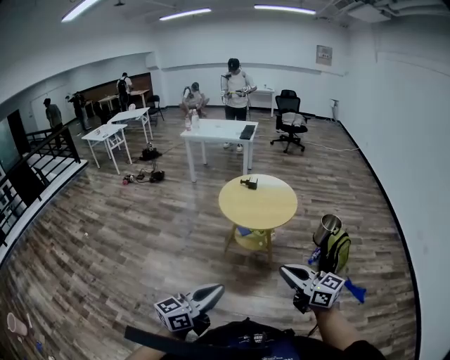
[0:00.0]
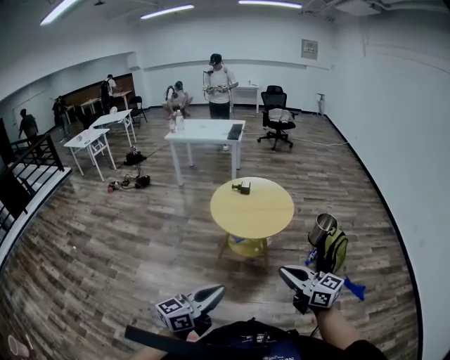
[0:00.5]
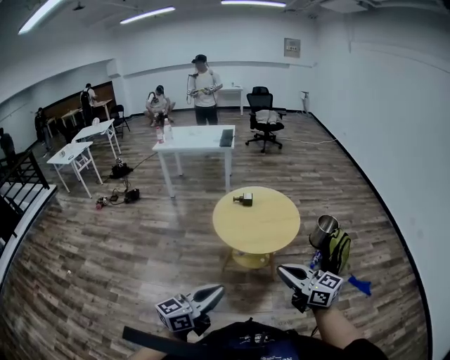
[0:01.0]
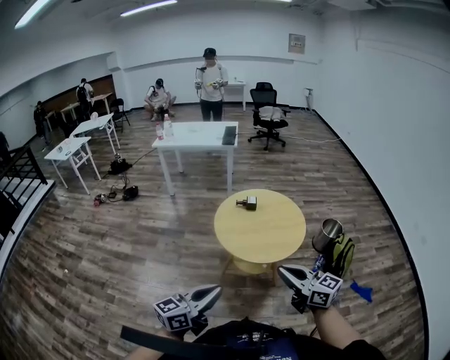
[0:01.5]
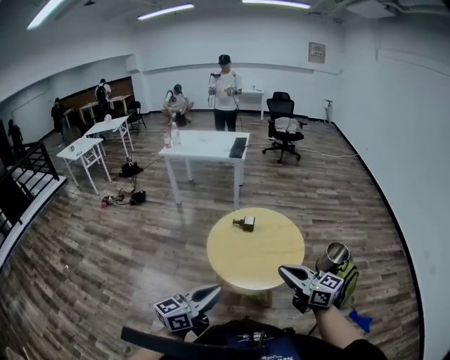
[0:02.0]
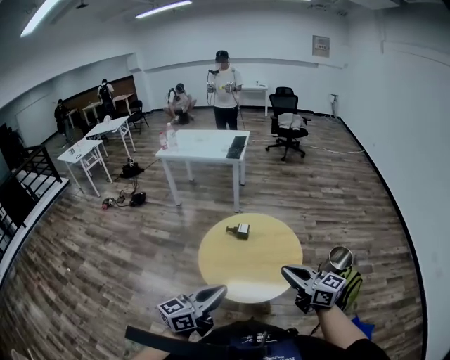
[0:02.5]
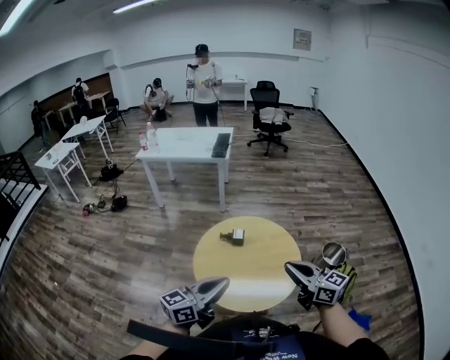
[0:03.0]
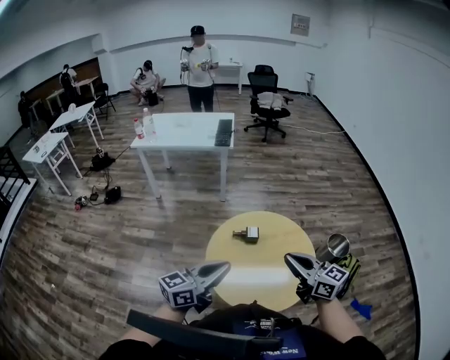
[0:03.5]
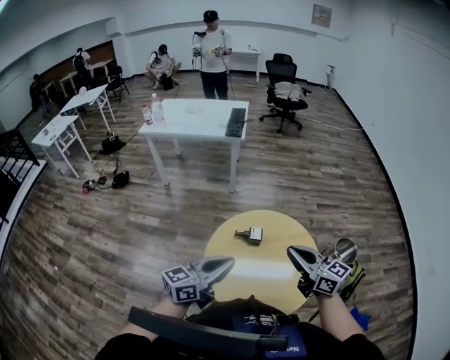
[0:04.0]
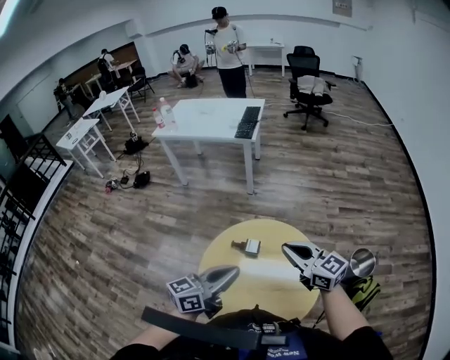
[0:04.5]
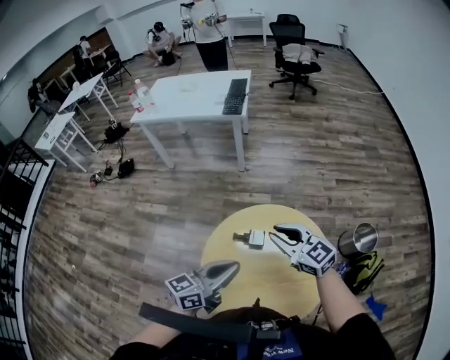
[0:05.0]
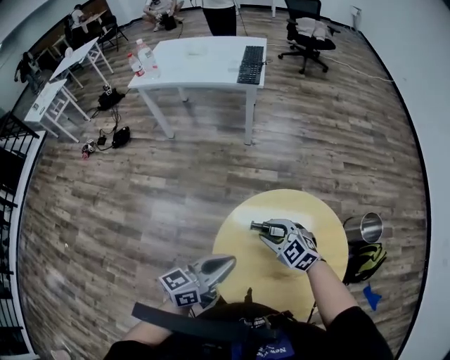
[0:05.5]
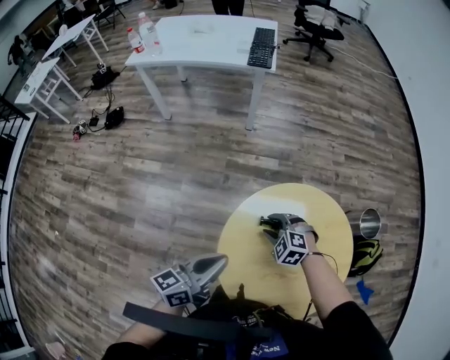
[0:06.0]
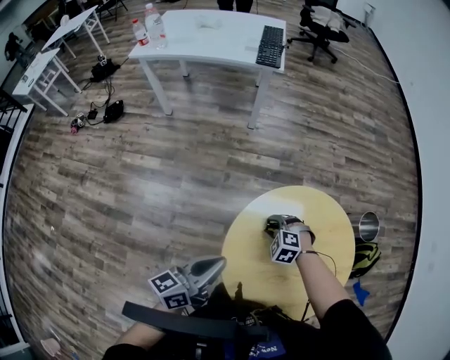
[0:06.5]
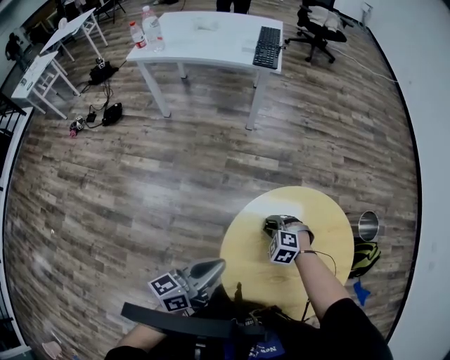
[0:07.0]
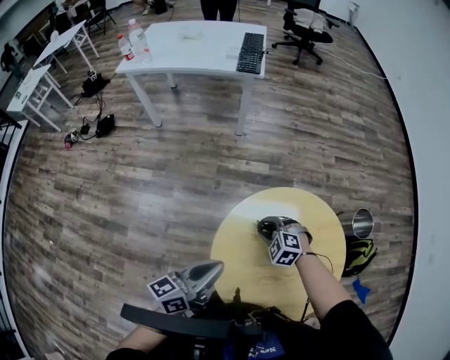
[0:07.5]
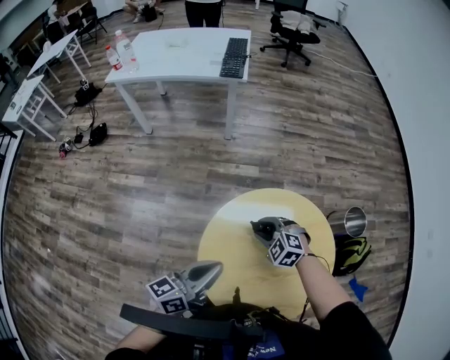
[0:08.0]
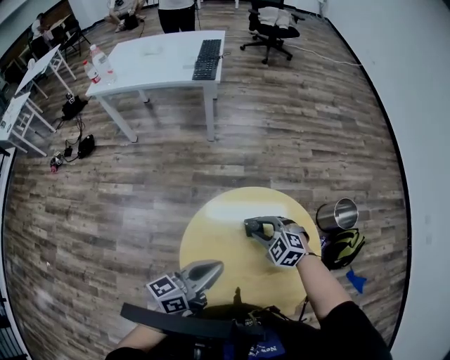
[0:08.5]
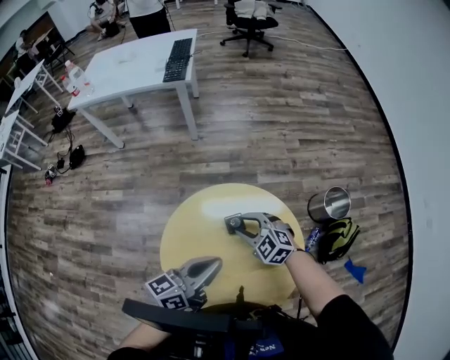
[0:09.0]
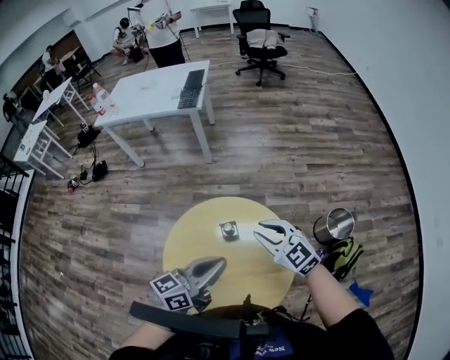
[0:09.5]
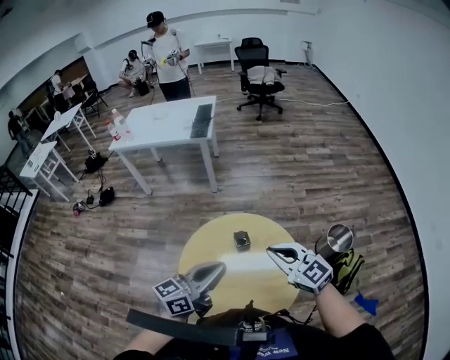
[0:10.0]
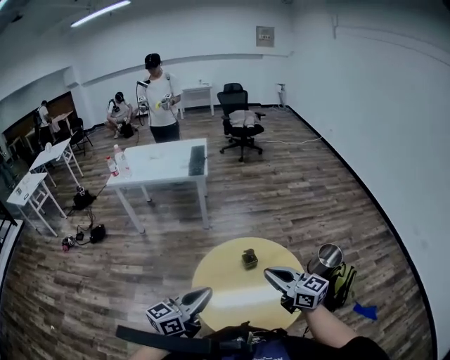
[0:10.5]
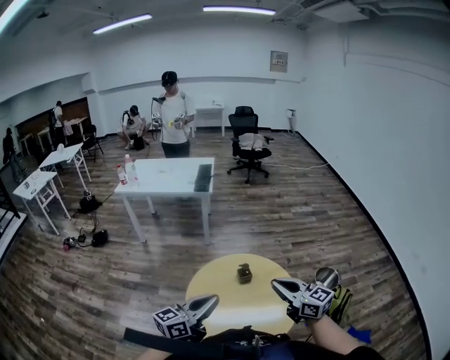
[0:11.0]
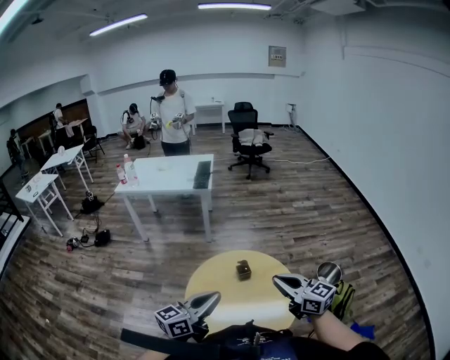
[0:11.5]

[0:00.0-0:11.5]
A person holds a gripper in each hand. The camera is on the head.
0:00.0 to 0:02.0: The pair of grippers is taken forward, some 50 cm.
0:02.0 to 0:04.0: Both grippers are carried forward, about 40 cm.
0:04.0 to 0:06.0: The left gripper shifts some 35 cm forward, downward and to the left. Meanwhile the right gripper moves downward, forward and to the left, some 50 cm, points its fingers approximately 60 degrees further downward, and opens its fingers.
0:07.5 to 0:09.5: The right gripper shifts roughly 40 cm to the right and upward, and points its fingers about 40 degrees further upward, while the left gripper travels to the right by roughly 40 cm.
0:09.5 to 0:11.5: The right gripper moves backward and upward, about 35 cm, rotates roughly 30 degrees, and closes, while the left gripper moves backward, to the left and upward, approximately 30 cm.

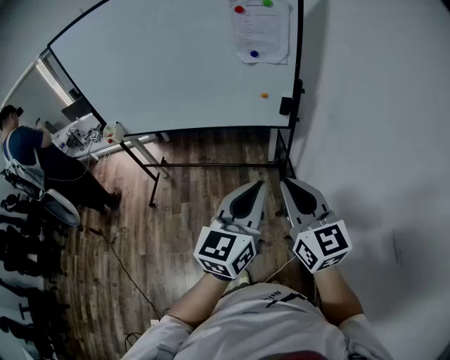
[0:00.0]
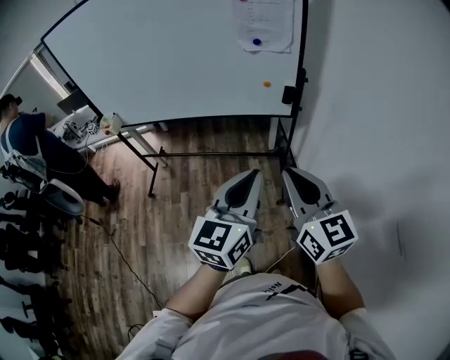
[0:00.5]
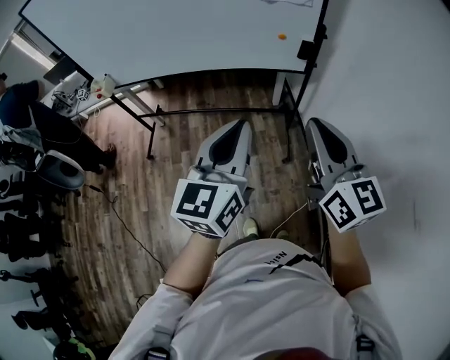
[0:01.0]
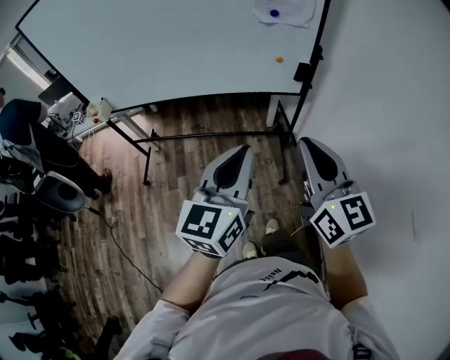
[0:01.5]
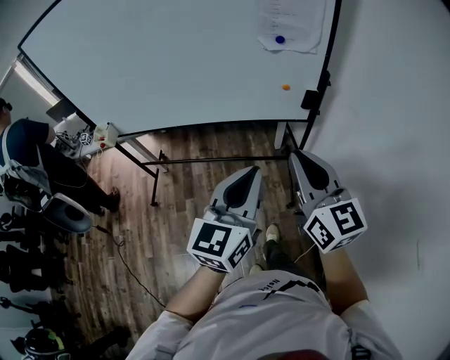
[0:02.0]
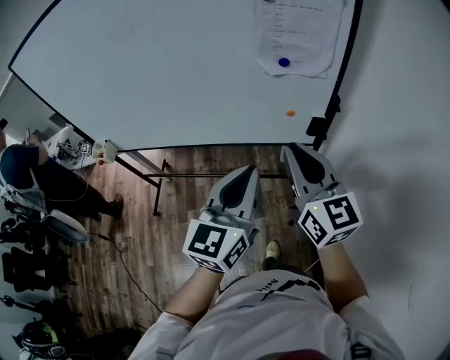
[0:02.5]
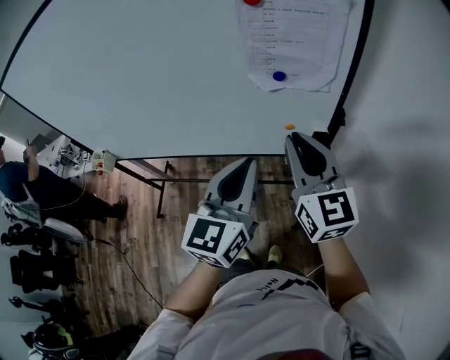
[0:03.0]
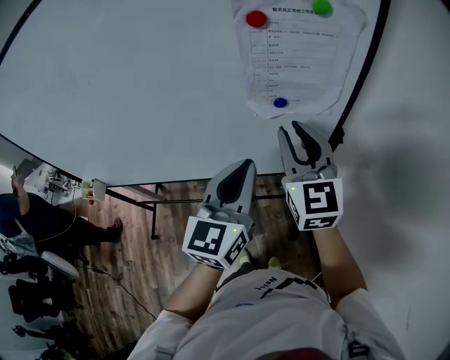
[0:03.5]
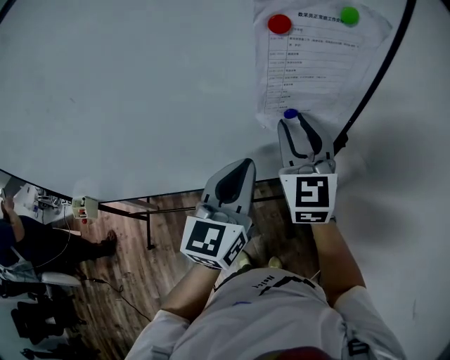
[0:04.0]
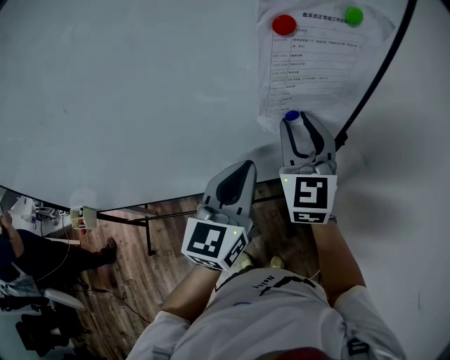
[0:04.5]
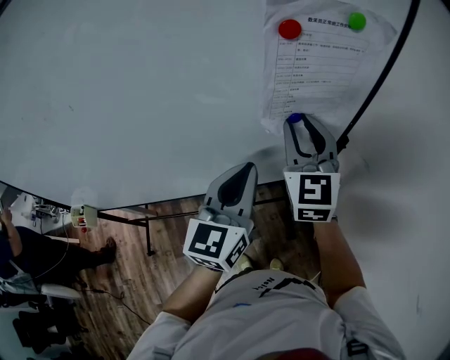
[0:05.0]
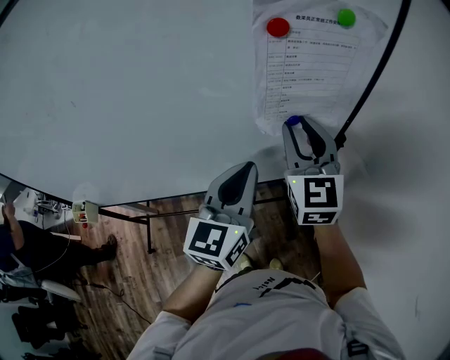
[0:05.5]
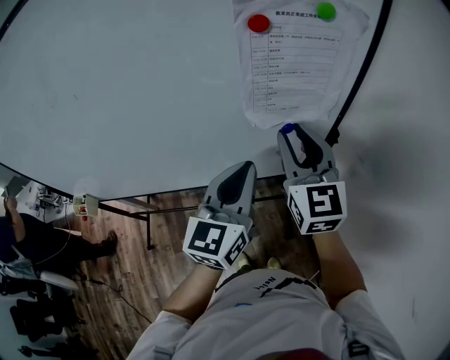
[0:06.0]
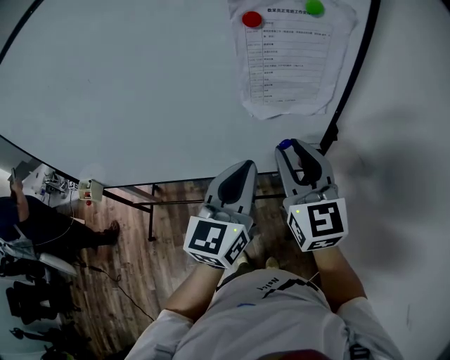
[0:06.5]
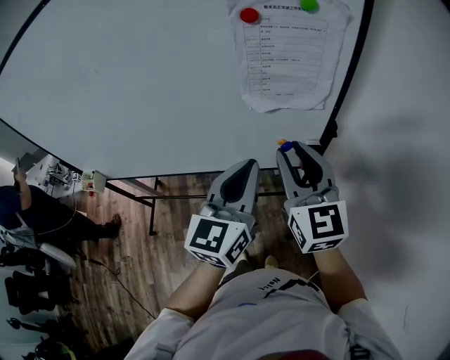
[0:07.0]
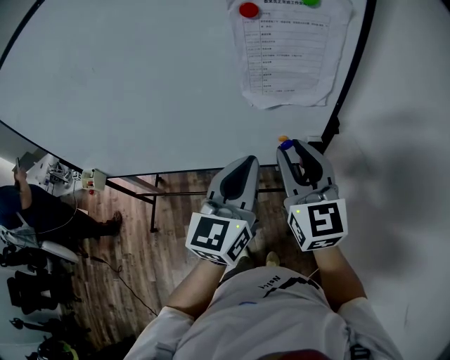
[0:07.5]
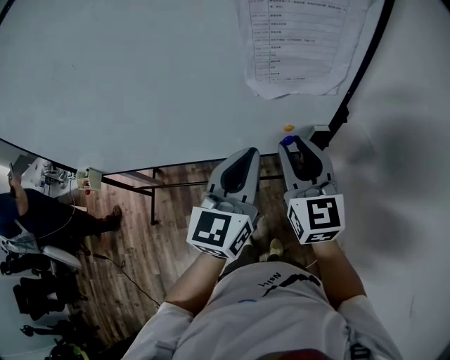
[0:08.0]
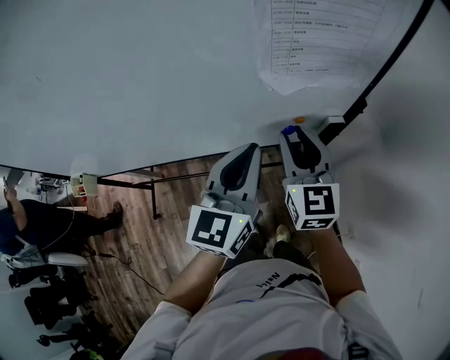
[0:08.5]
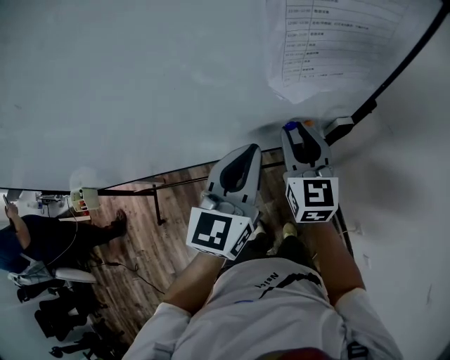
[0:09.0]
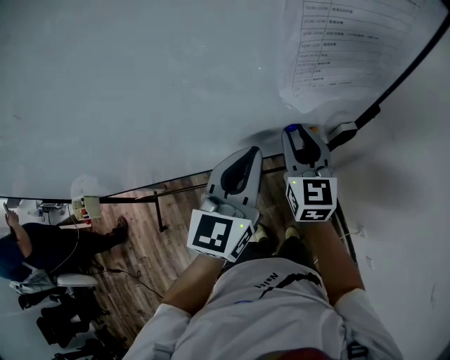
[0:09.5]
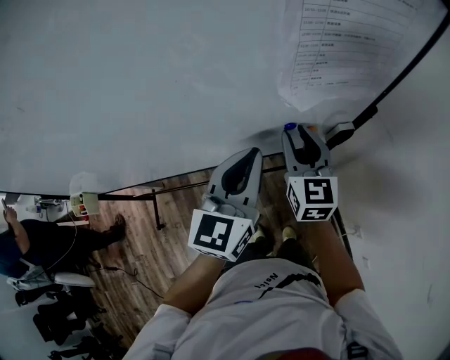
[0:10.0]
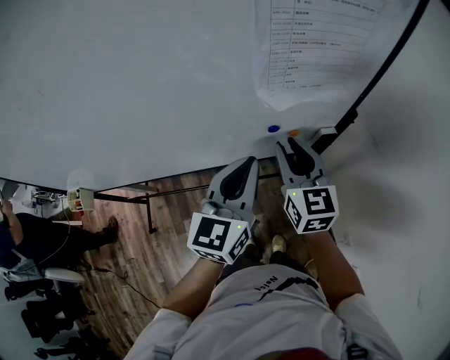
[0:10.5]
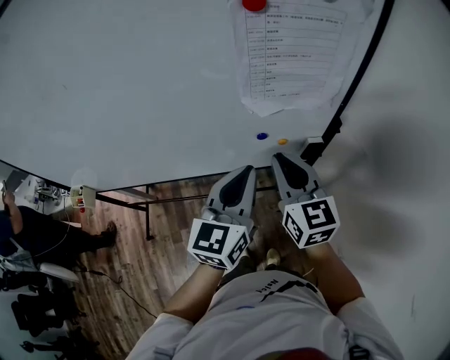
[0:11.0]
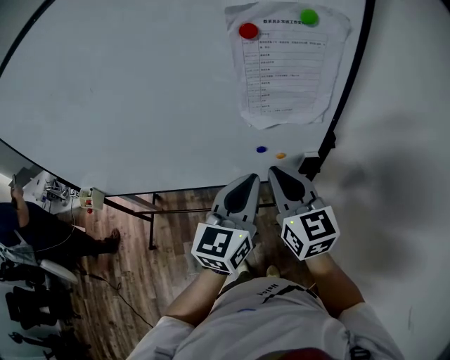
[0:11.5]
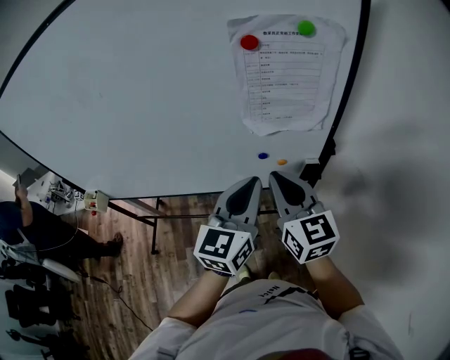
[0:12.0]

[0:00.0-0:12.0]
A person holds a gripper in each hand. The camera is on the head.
0:00.0 to 0:02.0: Both grippers travel together forward and to the left, roughly 15 cm.
0:02.0 to 0:04.0: Both grippers travel together forward, approximately 40 cm. The right gripper rotates approximately 30 degrees, and opens.
0:04.0 to 0:06.0: The grippers move only a little.
0:06.0 to 0:08.0: The right gripper is displaced downward and backward by approximately 10 cm.
0:08.0 to 0:10.0: The right gripper shifts about 15 cm downward and forward; the left gripper is displaced forward, downward and to the left by some 10 cm.
0:10.0 to 0:12.0: The left gripper heads backward, upward and to the right, covering roughly 15 cm. Meanwhile the right gripper travels upward and backward by about 20 cm, swivels approximately 20 degrees, and closes.

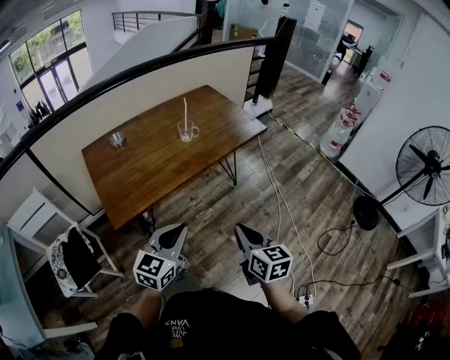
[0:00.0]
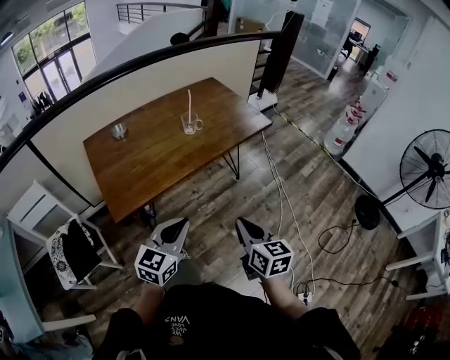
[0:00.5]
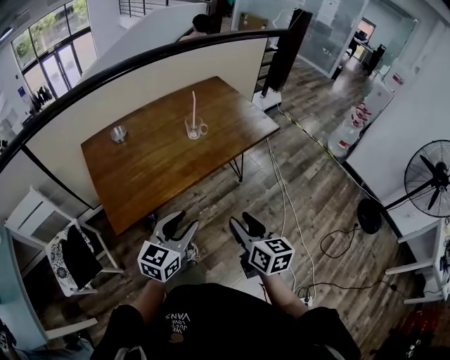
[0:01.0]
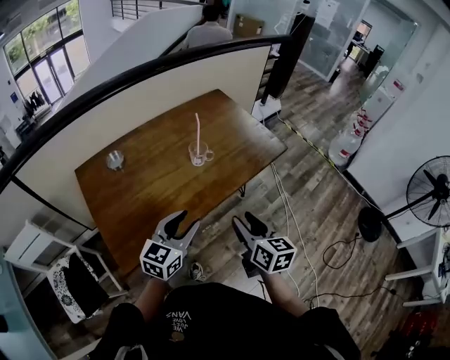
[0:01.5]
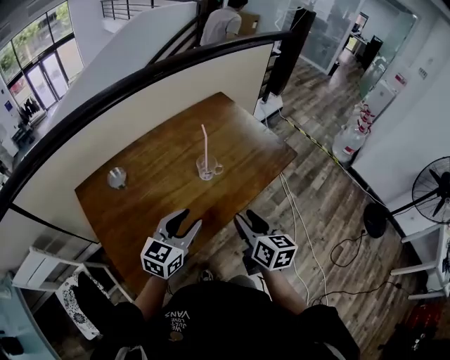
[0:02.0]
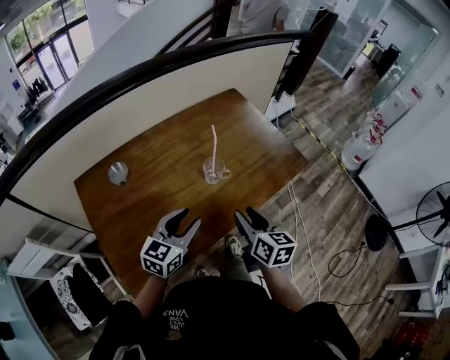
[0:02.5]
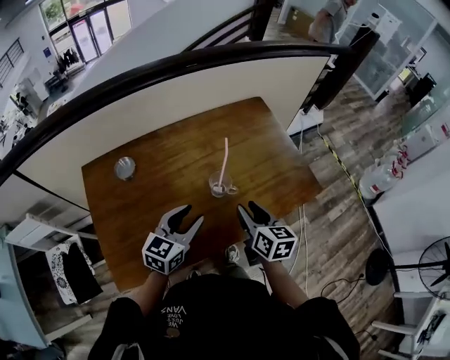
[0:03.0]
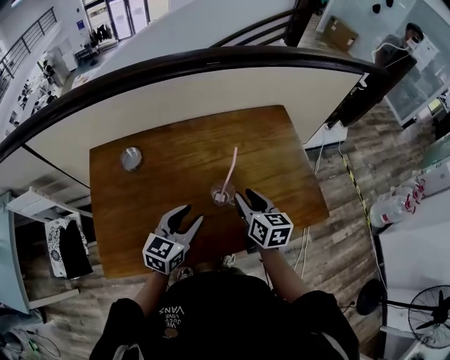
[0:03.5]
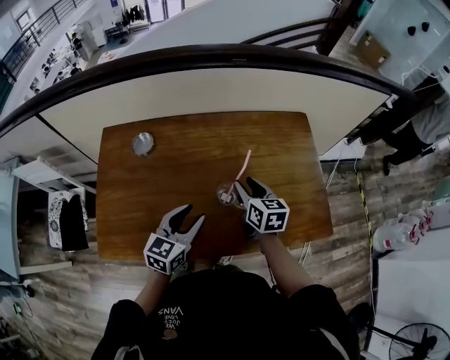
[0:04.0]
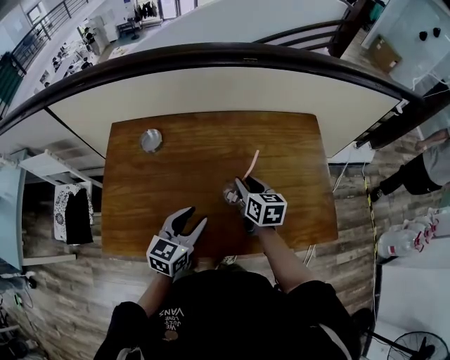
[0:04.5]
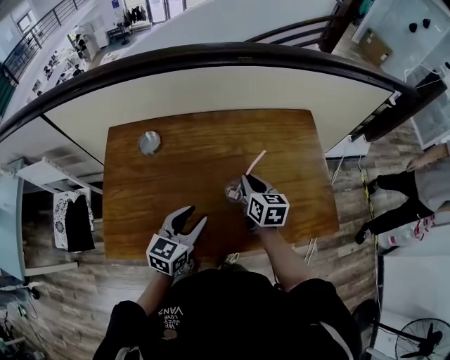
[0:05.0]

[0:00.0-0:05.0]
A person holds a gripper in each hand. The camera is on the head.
0:00.0 to 0:02.5: Both grippers move forward, some 35 cm. The left gripper opens up. Meanwhile the right gripper opens up.
0:02.5 to 0:05.0: The right gripper shifts by roughly 25 cm, changes its angle by roughly 30 degrees, and closes its fingers. Meanwhile the left gripper moves roughly 10 cm, and rotates roughly 30 degrees.
